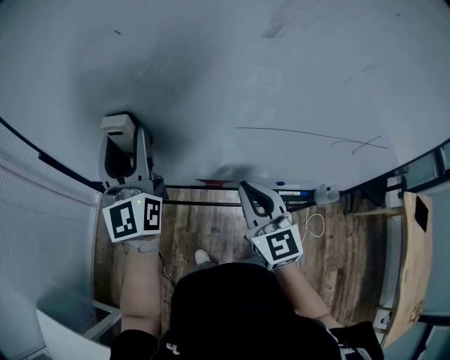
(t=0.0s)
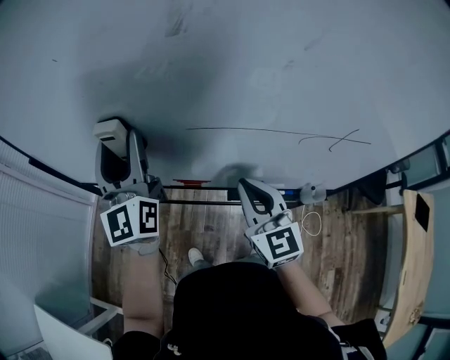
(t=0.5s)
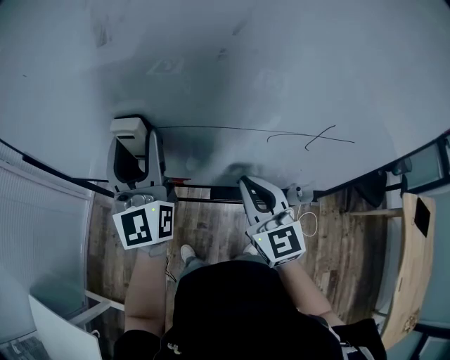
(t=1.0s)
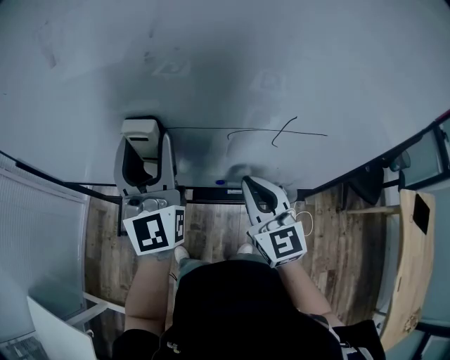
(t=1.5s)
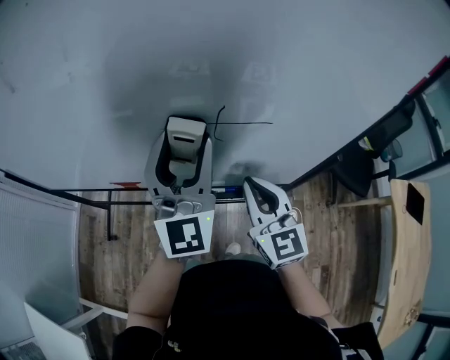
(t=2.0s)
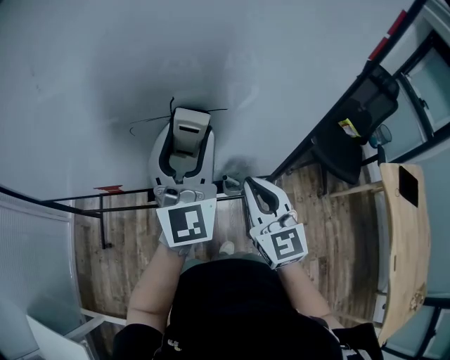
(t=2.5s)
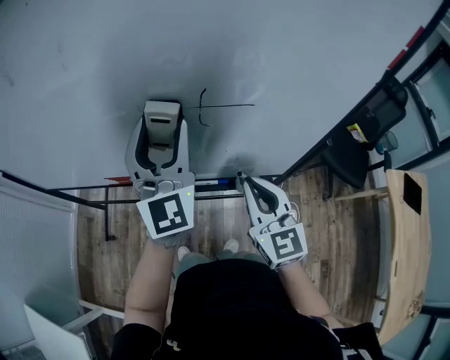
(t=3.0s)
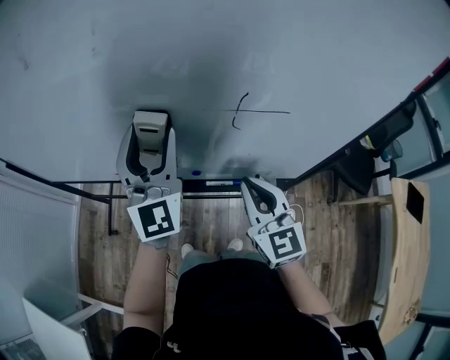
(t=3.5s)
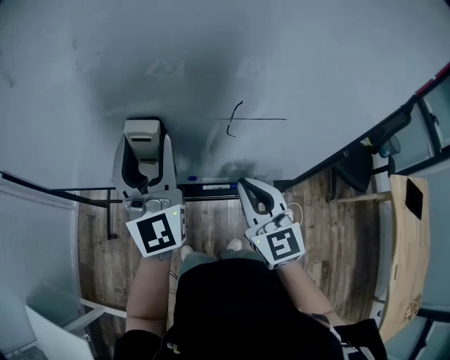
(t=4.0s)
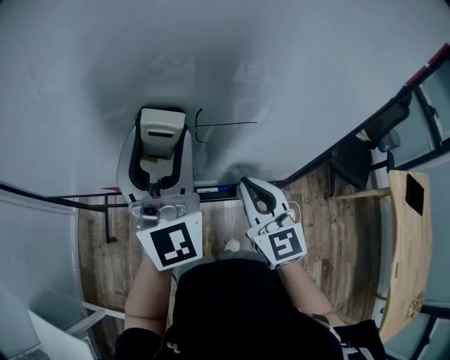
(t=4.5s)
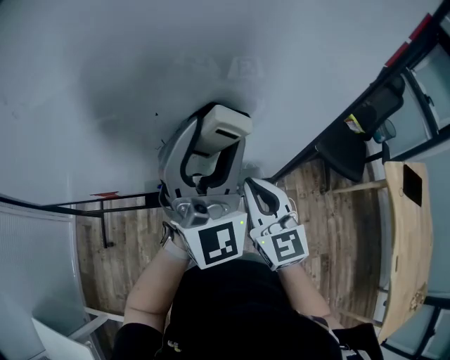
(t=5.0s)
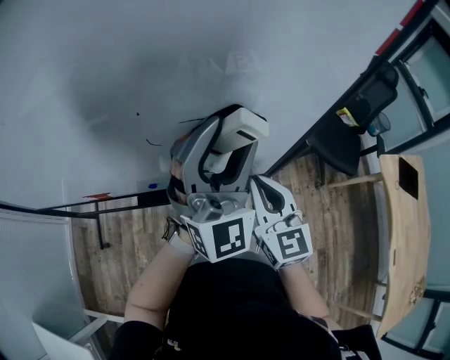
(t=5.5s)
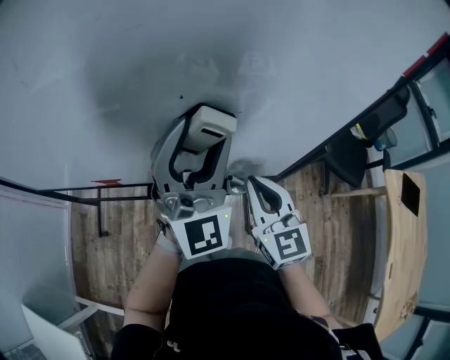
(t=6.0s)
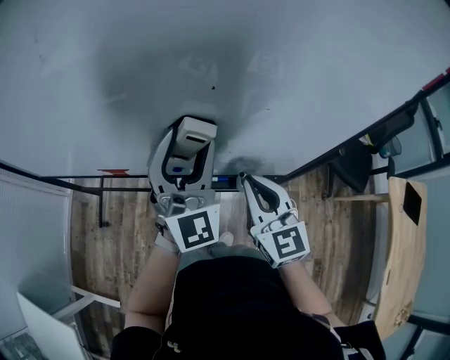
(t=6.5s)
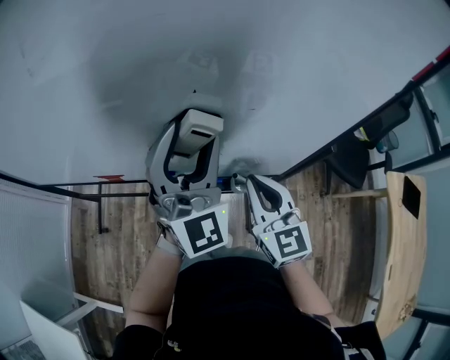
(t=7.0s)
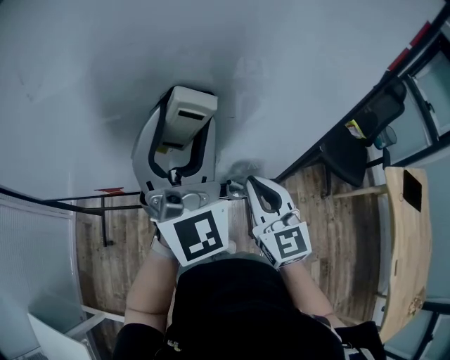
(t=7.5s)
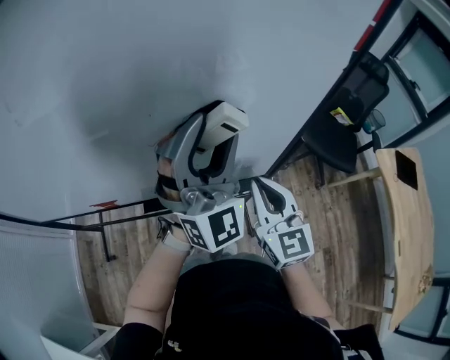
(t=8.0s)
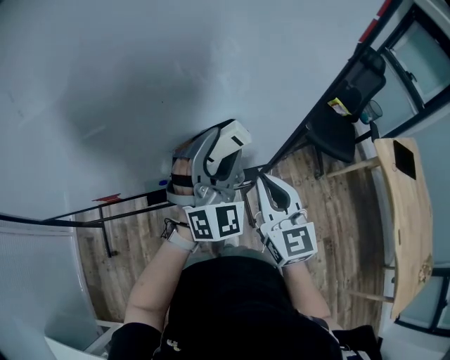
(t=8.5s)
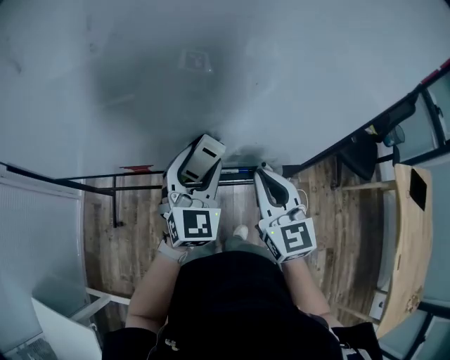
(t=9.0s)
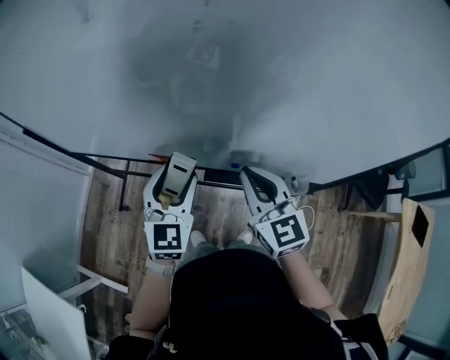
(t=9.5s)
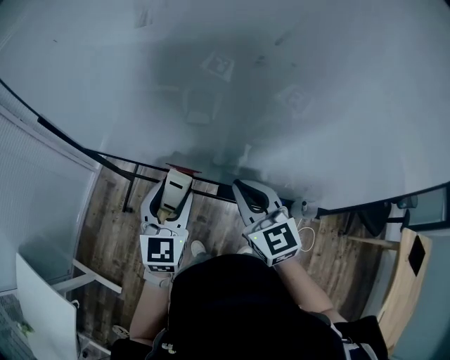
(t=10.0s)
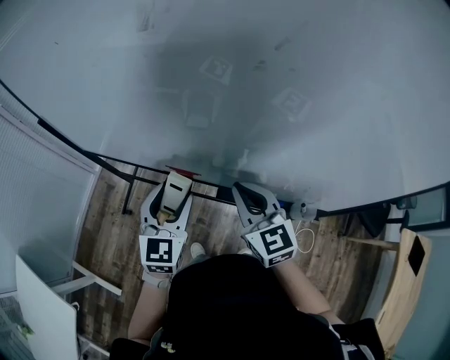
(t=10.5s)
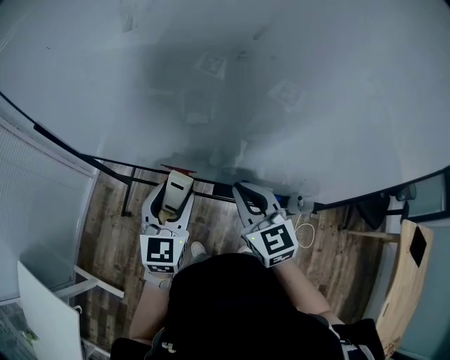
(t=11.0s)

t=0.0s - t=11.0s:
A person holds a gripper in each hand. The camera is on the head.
t=0.0s - t=2.0s: The two grippers go approximately 40 cm to the right.
t=2.0s - t=3.5s: The left gripper travels to the left by some 10 cm.
t=3.5s - t=5.5s: The right gripper shifts some 15 cm to the right. The left gripper moves to the right, some 30 cm, and turns by approximately 30 degrees.
t=5.5s - t=7.5s: The right gripper travels to the left by roughly 5 cm. The left gripper travels to the left by approximately 15 cm.
t=7.5s - t=9.0s: The right gripper is displaced to the left by approximately 10 cm. Meanwhile the left gripper shifts about 20 cm downward, and turns by roughly 30 degrees.
t=9.0s - t=11.0s: The right gripper is displaced to the left and forward by some 20 cm, and changes its angle by roughly 20 degrees, while the left gripper shifts some 25 cm to the left, and rotates roughly 30 degrees.

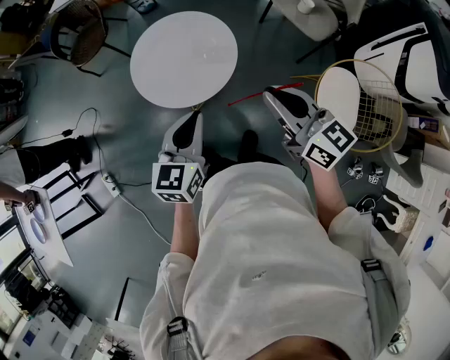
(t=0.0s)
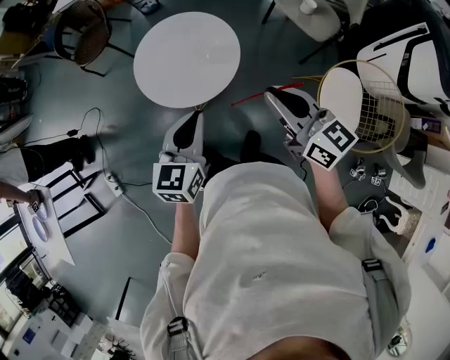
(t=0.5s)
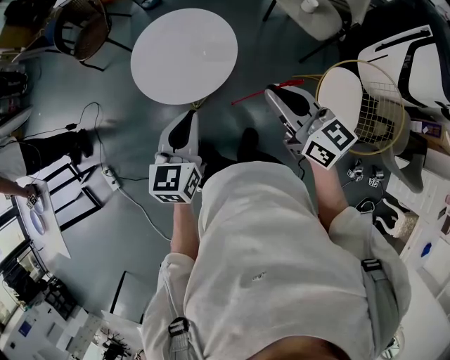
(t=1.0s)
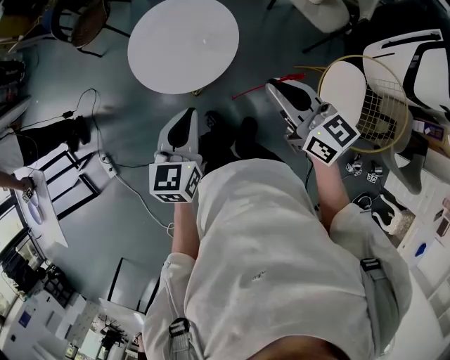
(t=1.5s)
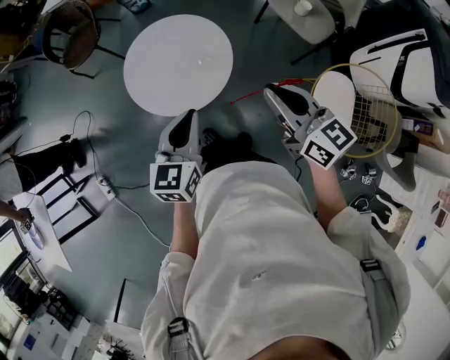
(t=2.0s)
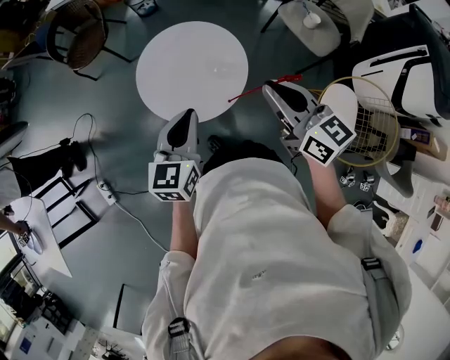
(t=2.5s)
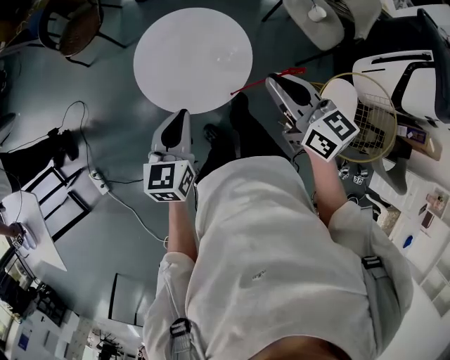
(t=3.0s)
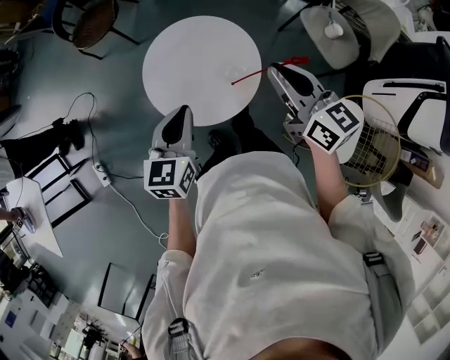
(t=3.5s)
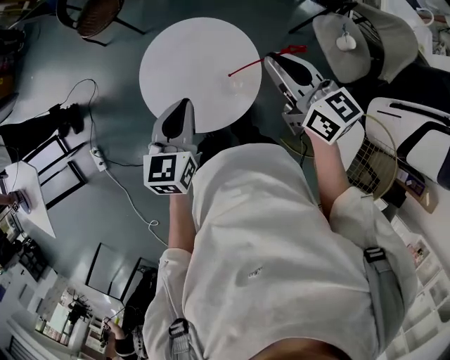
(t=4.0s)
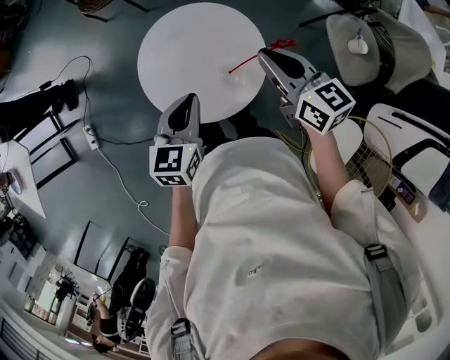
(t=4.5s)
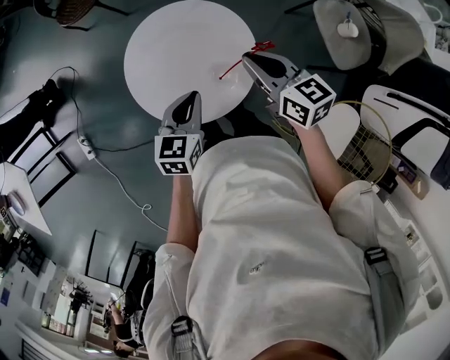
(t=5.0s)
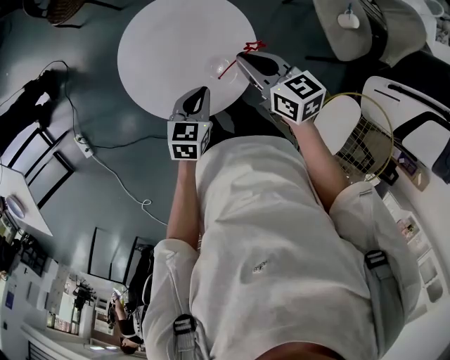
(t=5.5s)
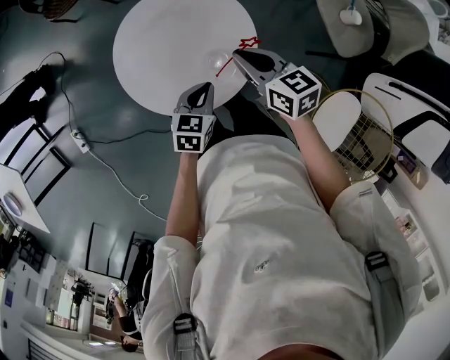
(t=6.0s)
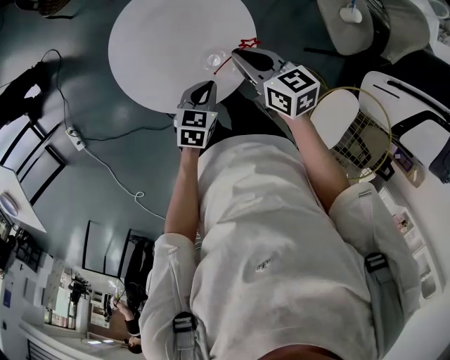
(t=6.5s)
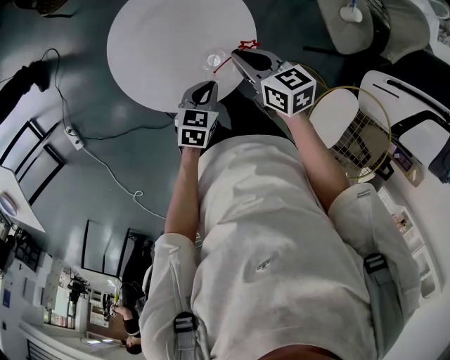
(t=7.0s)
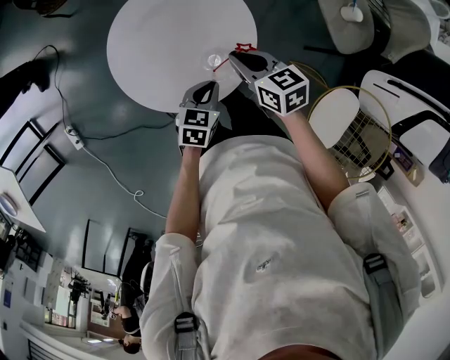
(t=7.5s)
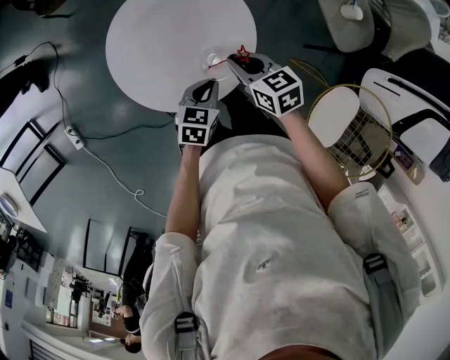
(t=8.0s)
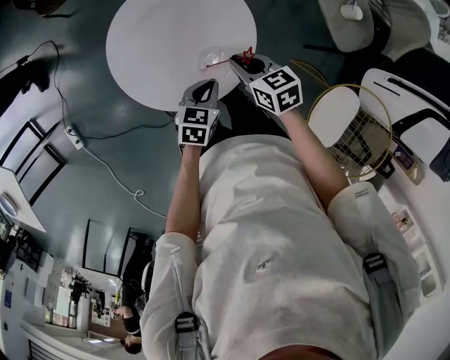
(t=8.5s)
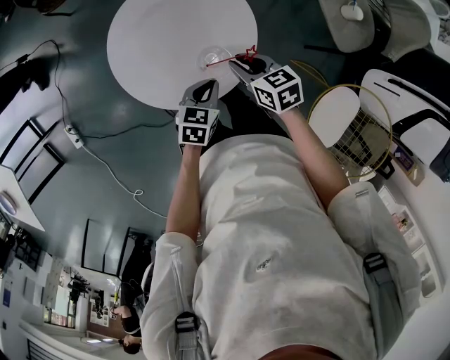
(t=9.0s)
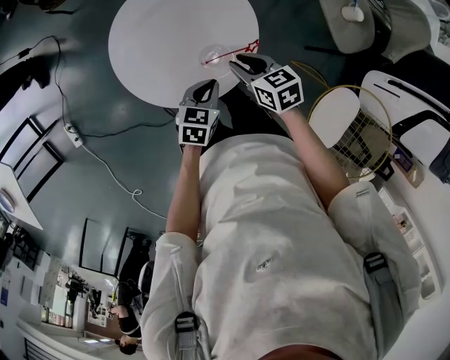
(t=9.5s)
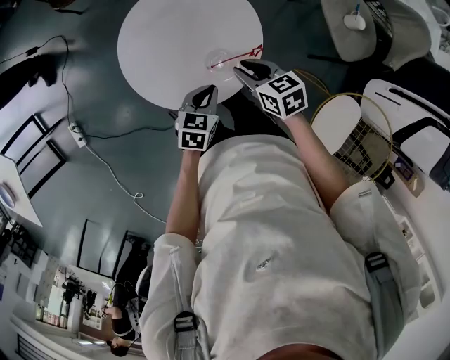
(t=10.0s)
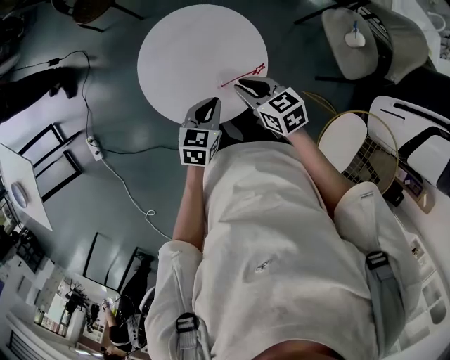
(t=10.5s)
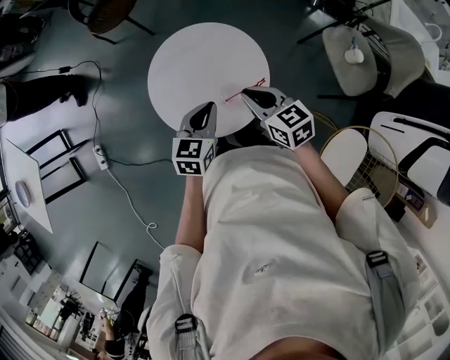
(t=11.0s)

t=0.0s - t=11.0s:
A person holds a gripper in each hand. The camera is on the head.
t=0.0s - t=2.0s: There are only small adjustments of the grippers.
t=2.0s - t=3.5s: The two grippers go about 15 cm forward and to the left.
t=3.5s - t=5.5s: The right gripper shifts roughly 20 cm downward and forward, and changes its angle by some 20 degrees. Meanwhile the left gripper moves downward and to the right, about 20 cm, and swivels roughly 20 degrees.
t=5.5s - t=7.5s: The grippers both shift downward by about 5 cm.
t=7.5s - t=9.0s: There are only small adjustments of the grippers.
t=9.0s - t=11.0s: Both grippers travel together upward, roughly 15 cm. The left gripper turns by about 20 degrees.

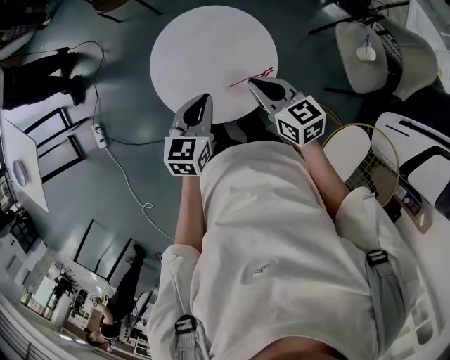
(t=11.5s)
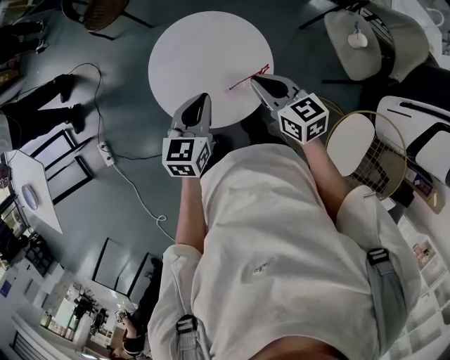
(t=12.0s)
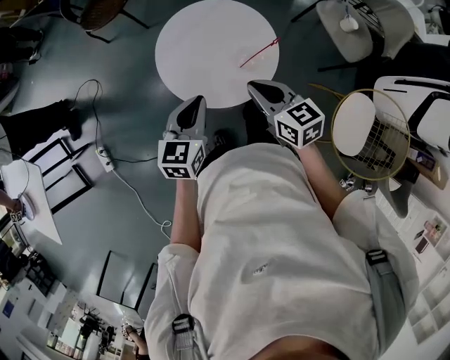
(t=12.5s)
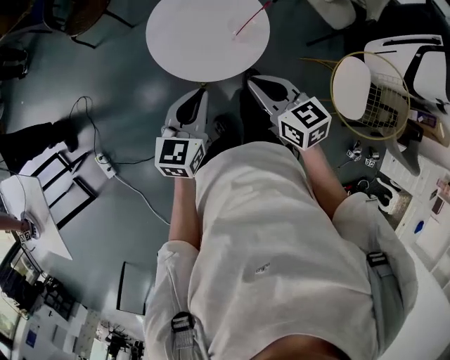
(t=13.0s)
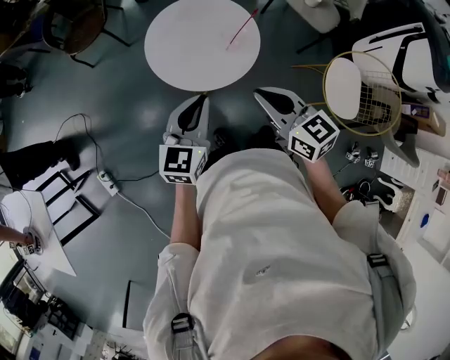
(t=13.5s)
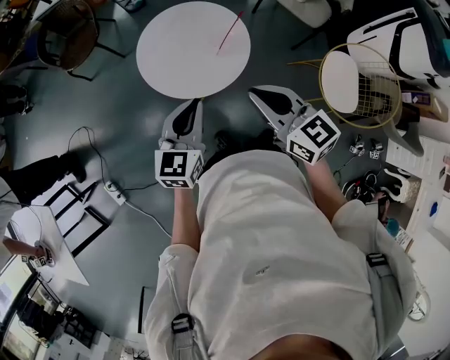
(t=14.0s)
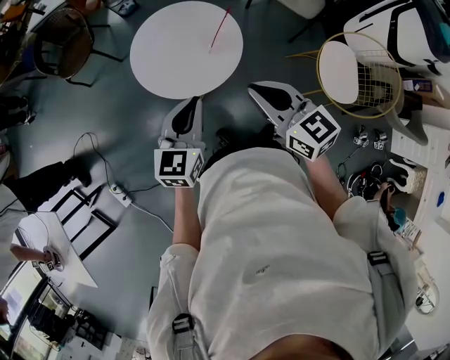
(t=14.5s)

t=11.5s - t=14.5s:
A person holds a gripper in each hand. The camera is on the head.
t=11.5s - t=13.0s: The grippers both shift backward and to the left by approximately 20 cm. The right gripper turns by some 20 degrees. The left gripper turns by roughly 30 degrees.
t=13.0s - t=14.5s: The left gripper is displaced to the right by about 5 cm, while the right gripper goes approximately 10 cm upward and to the right.

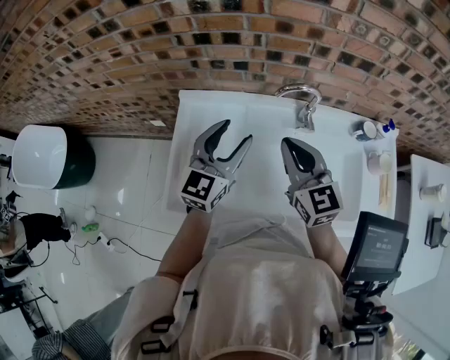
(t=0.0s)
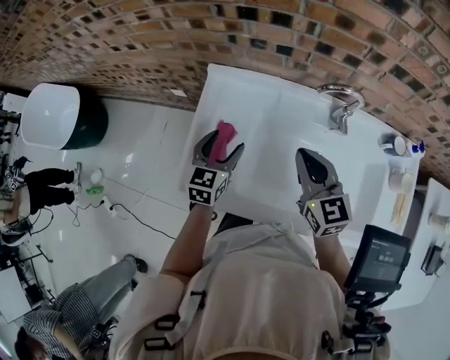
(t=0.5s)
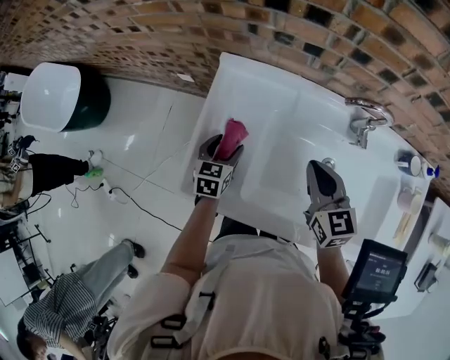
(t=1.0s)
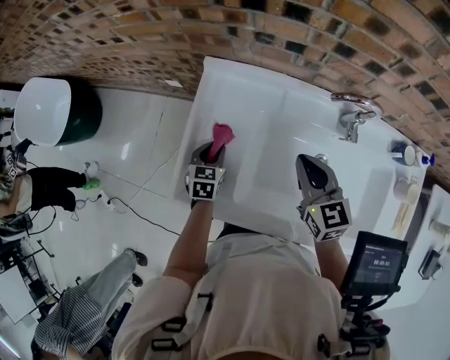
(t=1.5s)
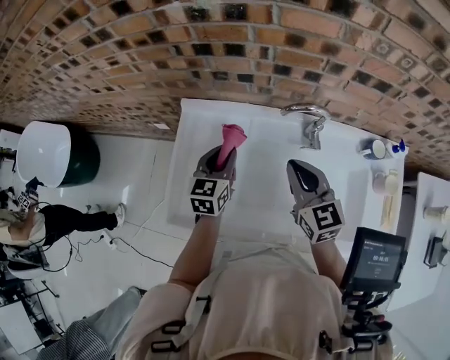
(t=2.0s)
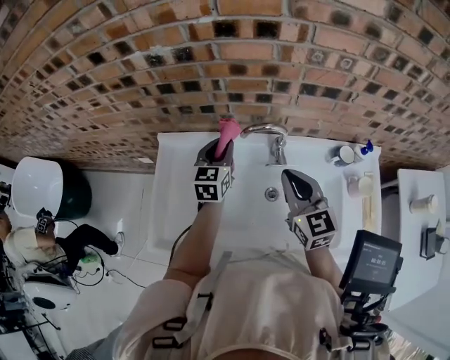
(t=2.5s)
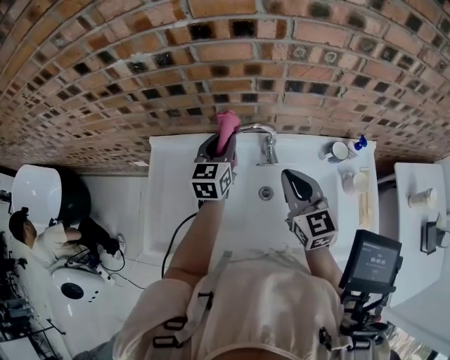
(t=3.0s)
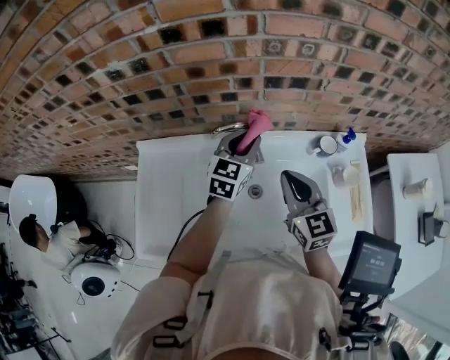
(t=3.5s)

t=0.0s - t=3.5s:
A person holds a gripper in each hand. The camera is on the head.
t=0.0s - t=2.0s: The left gripper goes approximately 15 cm downward and forward, turns by roughly 30 degrees, and closes up. Meanwhile the right gripper is displaced downward by about 5 cm.
t=2.0s - t=3.5s: The left gripper is displaced to the right by approximately 25 cm, and swivels some 30 degrees; the right gripper shifts roughly 15 cm to the right.
